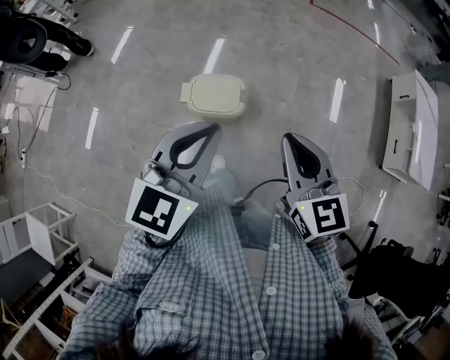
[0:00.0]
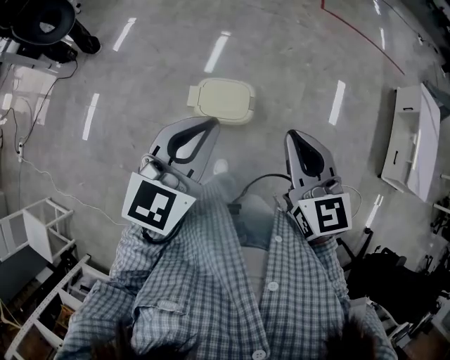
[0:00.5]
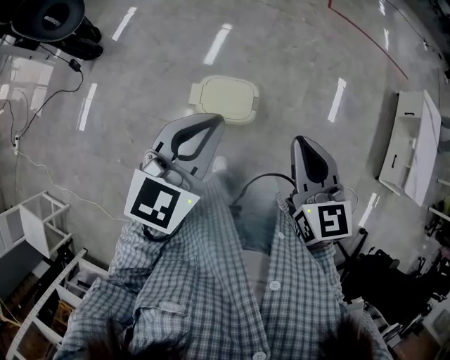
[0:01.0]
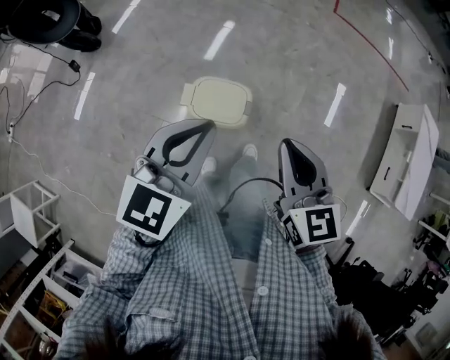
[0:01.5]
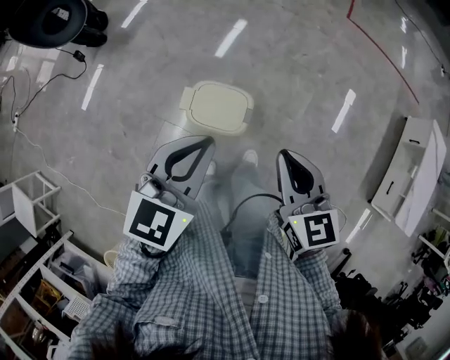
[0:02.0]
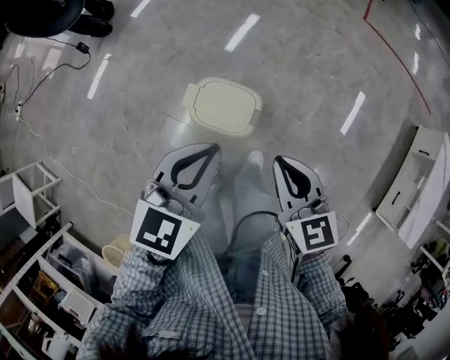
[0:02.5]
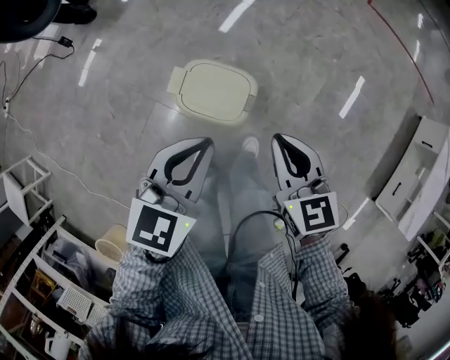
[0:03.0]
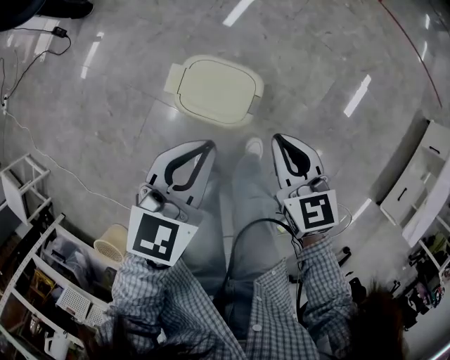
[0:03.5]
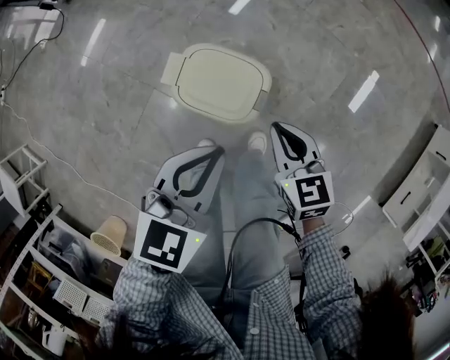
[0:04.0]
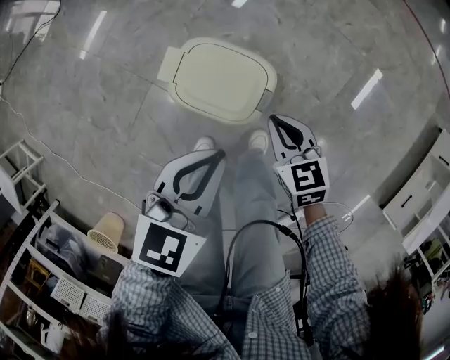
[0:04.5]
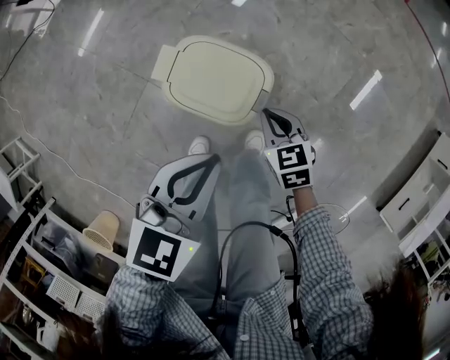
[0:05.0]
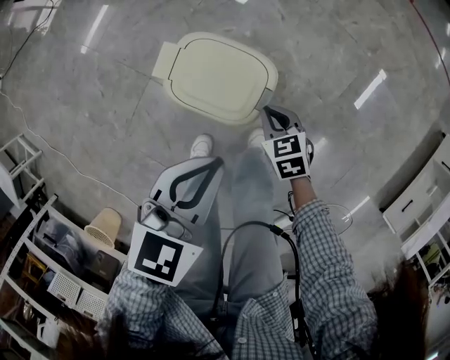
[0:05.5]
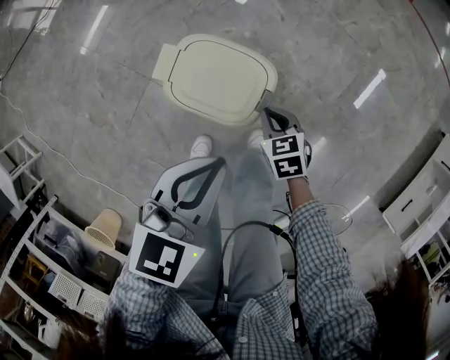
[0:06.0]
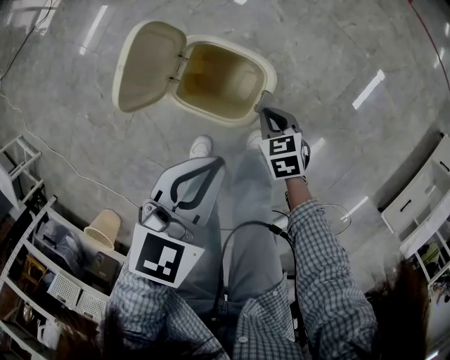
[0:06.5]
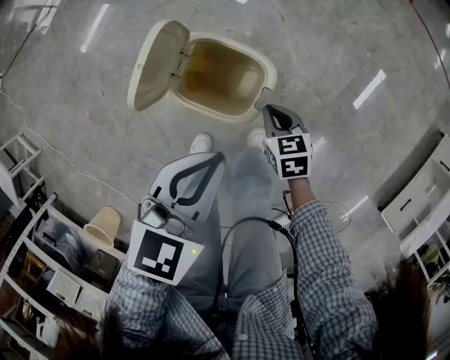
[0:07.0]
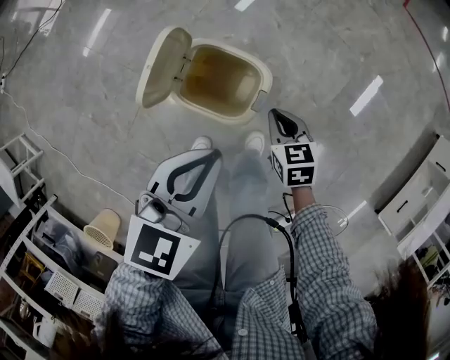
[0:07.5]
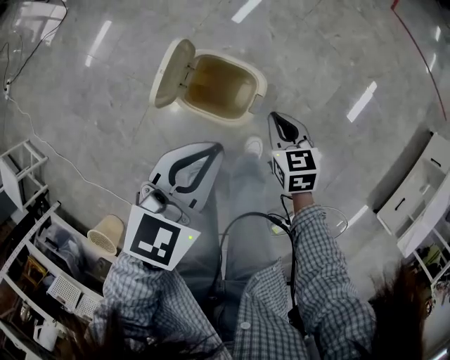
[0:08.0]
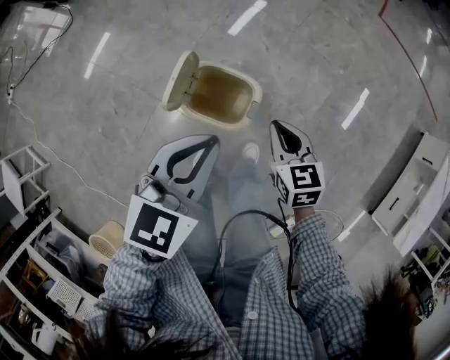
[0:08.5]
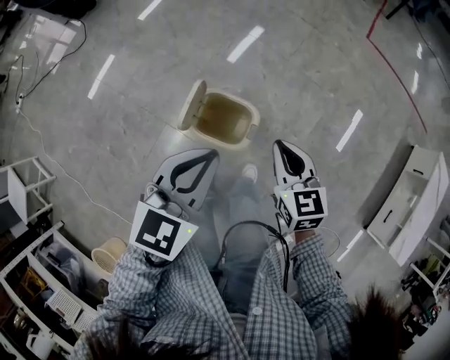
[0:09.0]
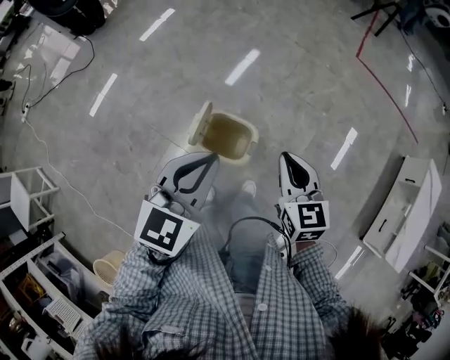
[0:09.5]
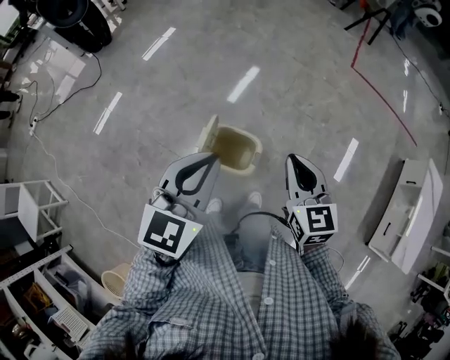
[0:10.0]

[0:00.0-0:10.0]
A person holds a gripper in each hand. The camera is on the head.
0:00.0 to 0:02.0: Both grippers move forward and downward, some 15 cm.
0:02.0 to 0:04.0: Both grippers travel together downward, some 25 cm.
0:04.0 to 0:06.0: The right gripper is displaced downward by some 20 cm.
0:06.0 to 0:08.0: The right gripper heads upward, covering some 15 cm; the left gripper shifts approximately 10 cm upward.
0:08.0 to 0:10.0: The left gripper goes roughly 25 cm upward; the right gripper goes some 35 cm upward, and rotates about 30 degrees.

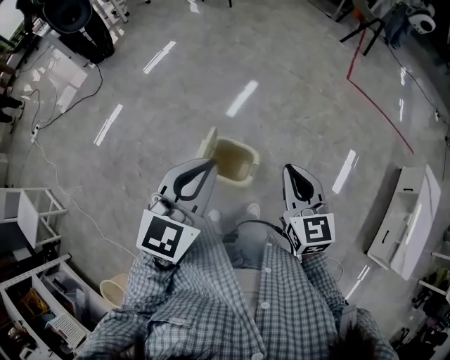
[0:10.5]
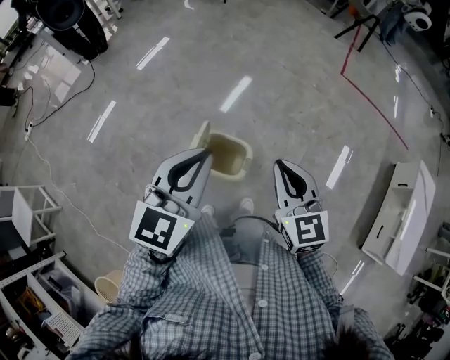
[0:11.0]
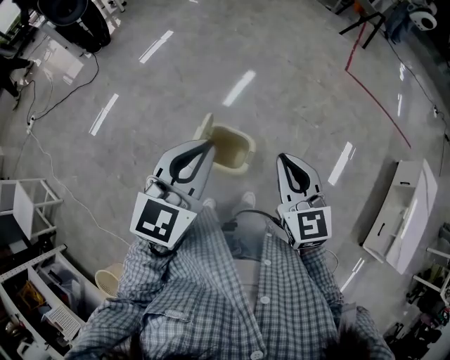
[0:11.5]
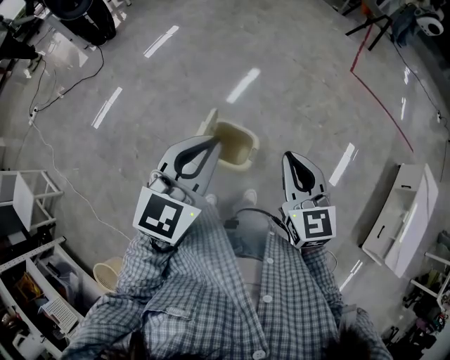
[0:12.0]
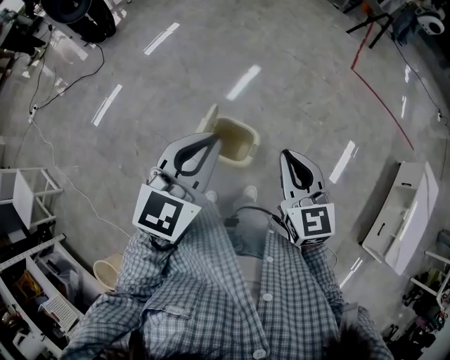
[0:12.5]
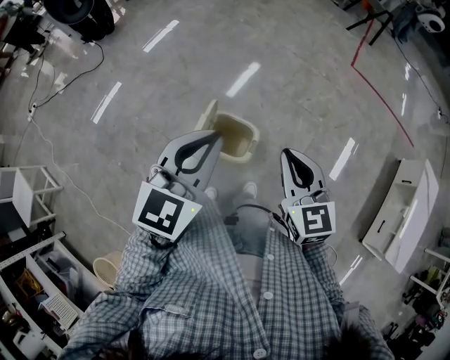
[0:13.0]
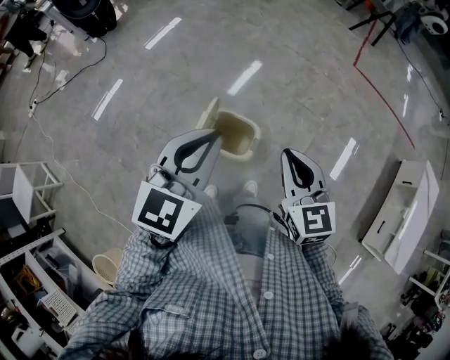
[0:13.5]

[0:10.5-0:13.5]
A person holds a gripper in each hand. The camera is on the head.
0:10.5 to 0:13.5: The grippers stay close to where they were, moving slightly.

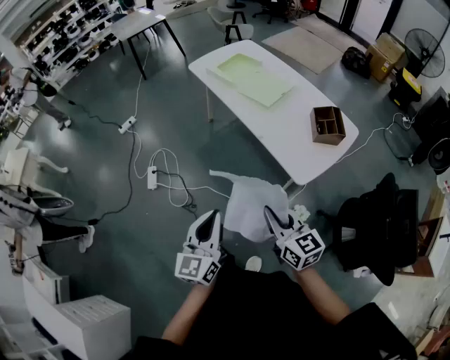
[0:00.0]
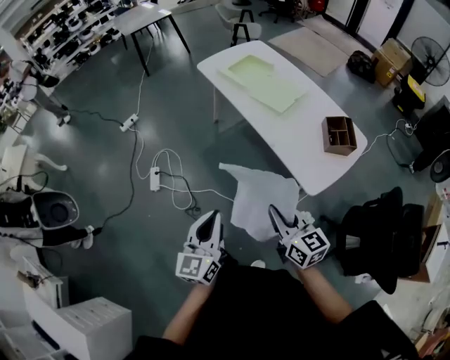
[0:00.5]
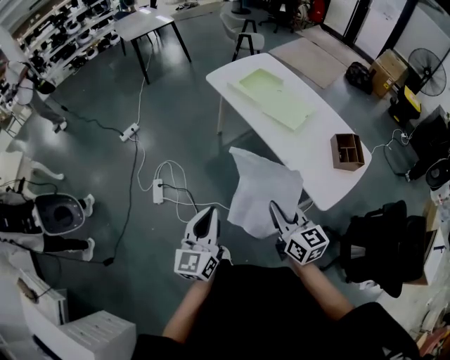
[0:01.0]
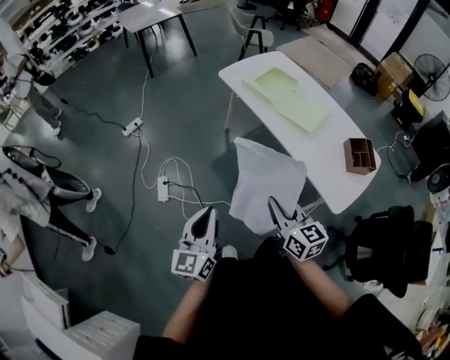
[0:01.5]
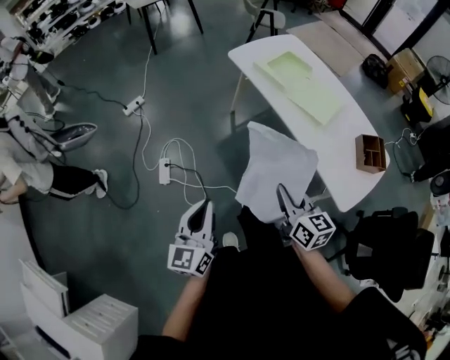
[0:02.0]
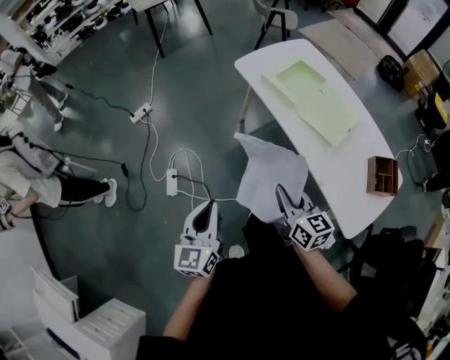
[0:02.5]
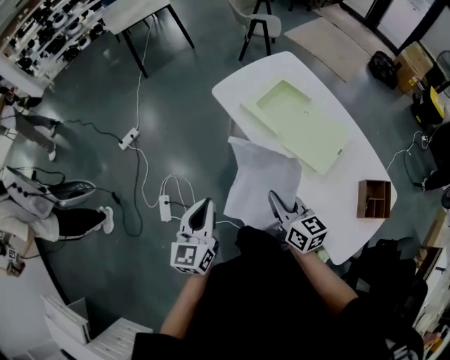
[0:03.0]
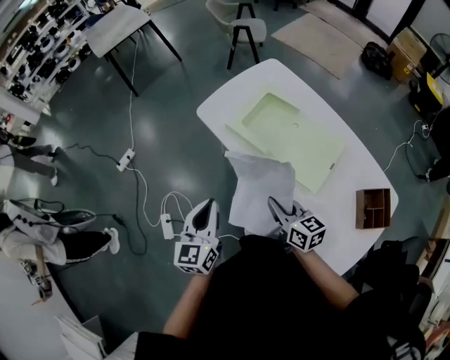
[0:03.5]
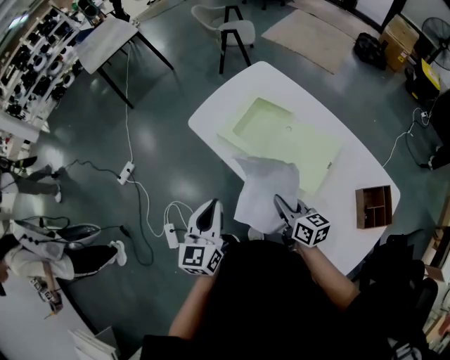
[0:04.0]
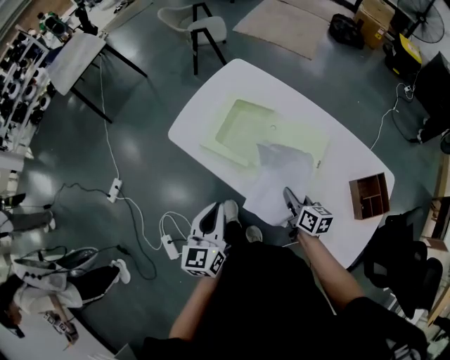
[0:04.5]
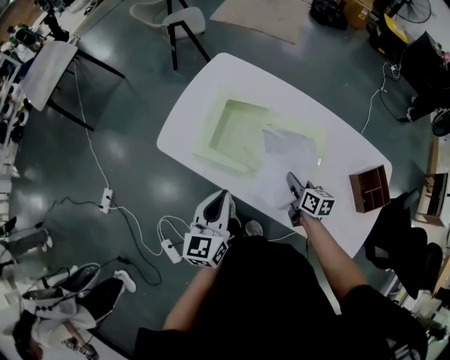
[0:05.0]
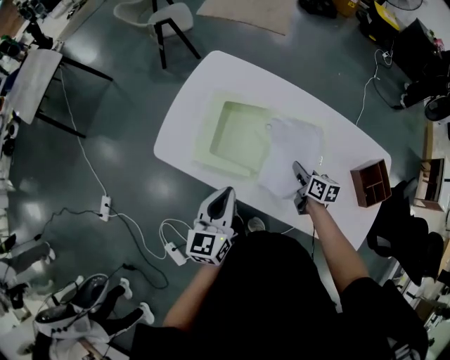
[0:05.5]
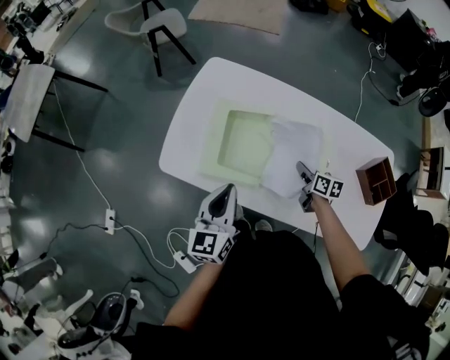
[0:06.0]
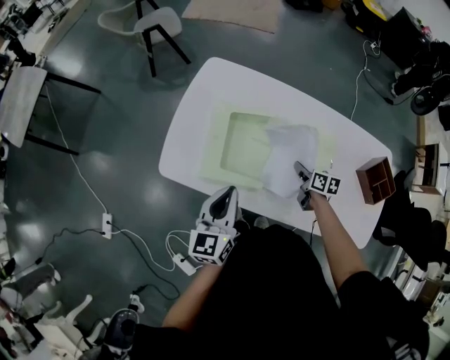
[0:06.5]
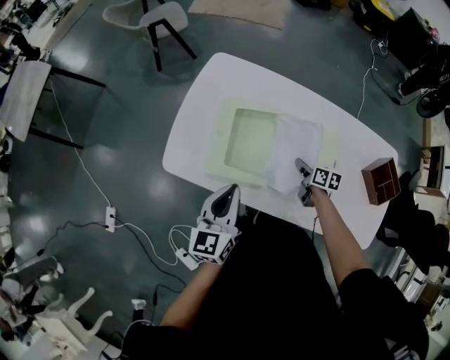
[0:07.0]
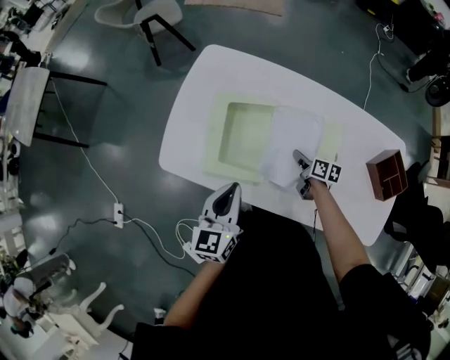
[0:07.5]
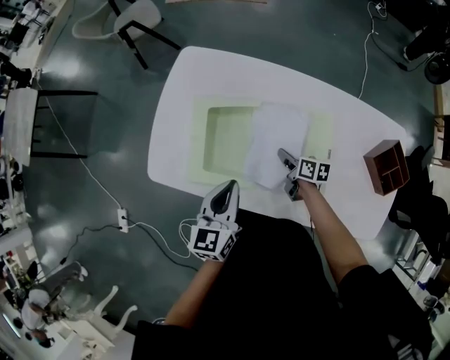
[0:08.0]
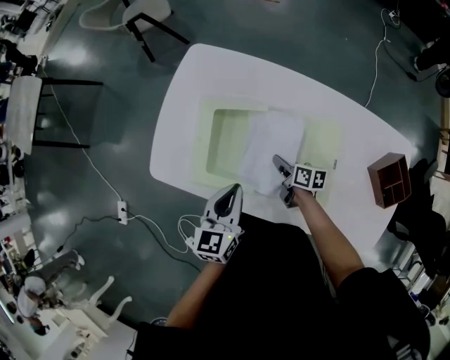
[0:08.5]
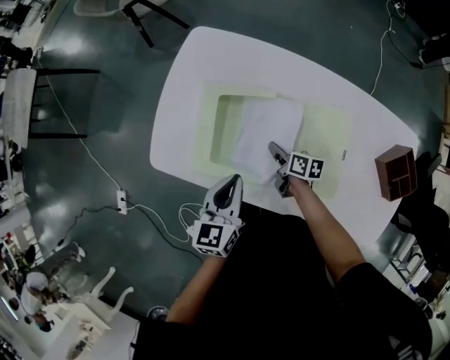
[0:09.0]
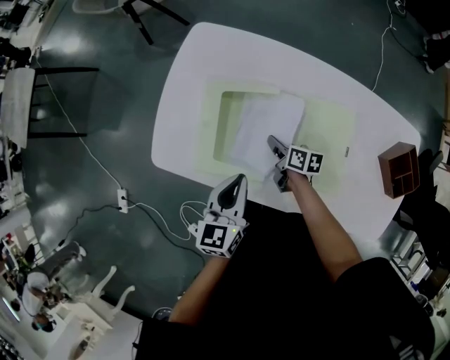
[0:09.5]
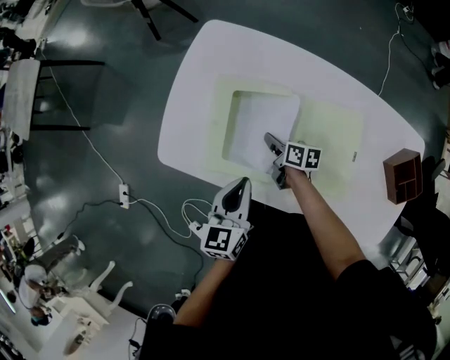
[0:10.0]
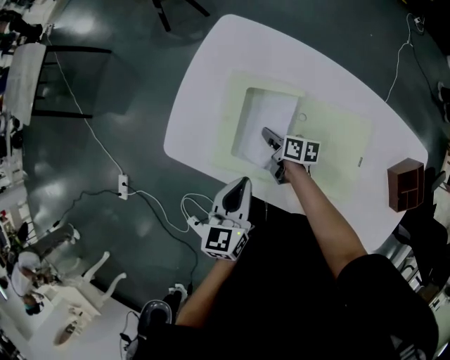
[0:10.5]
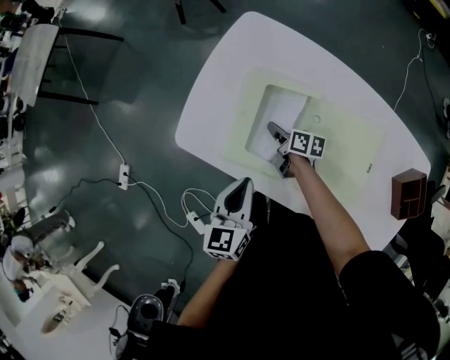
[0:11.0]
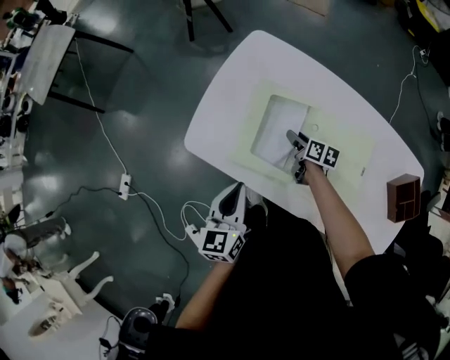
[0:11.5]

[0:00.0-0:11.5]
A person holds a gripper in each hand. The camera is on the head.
0:00.0 to 0:02.0: The right gripper is displaced forward and to the left by roughly 30 cm. Meanwhile the left gripper moves to the left and forward, about 35 cm.
0:02.0 to 0:04.0: The two grippers travel together, forward and to the right, about 40 cm.
0:04.0 to 0:06.0: The right gripper shifts by about 25 cm, and changes its angle by about 40 degrees, while the left gripper shifts by about 25 cm, and turns by some 30 degrees.
0:06.0 to 0:07.5: The right gripper moves downward, about 5 cm.
0:07.5 to 0:09.5: The left gripper shifts roughly 5 cm downward. The right gripper moves to the left, approximately 10 cm.
0:09.5 to 0:11.5: The left gripper shifts some 10 cm to the left. The right gripper shifts about 5 cm forward, and opens up.

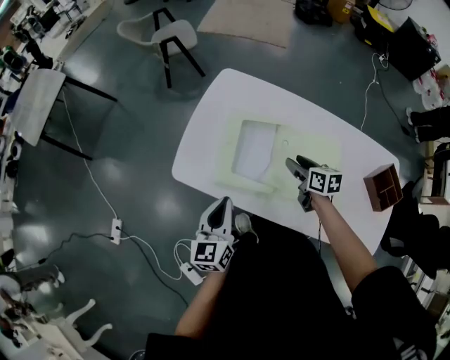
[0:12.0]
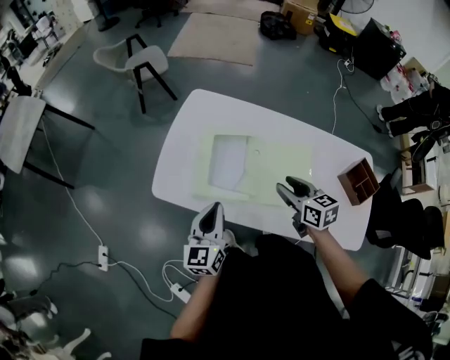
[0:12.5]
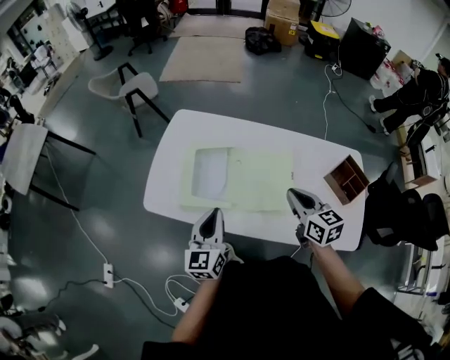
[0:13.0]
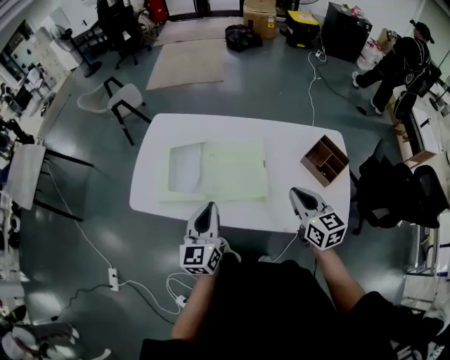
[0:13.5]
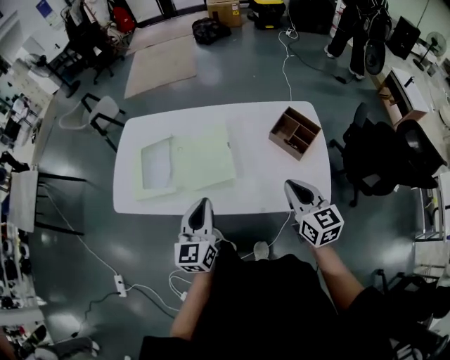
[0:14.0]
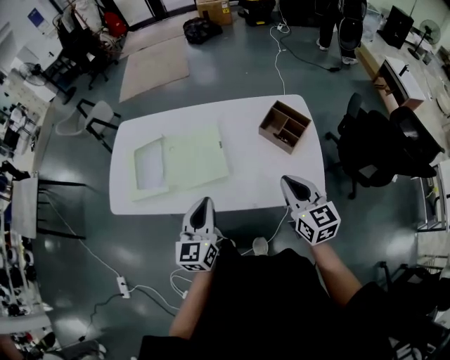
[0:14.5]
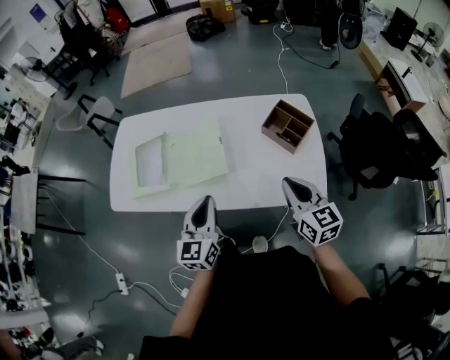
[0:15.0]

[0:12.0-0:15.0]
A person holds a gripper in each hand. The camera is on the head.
0:12.0 to 0:13.5: The left gripper goes about 25 cm to the right and upward, while the right gripper goes approximately 40 cm backward, to the right and upward, changes its angle by roughly 30 degrees, and closes up.
0:13.5 to 0:15.0: The right gripper shifts some 15 cm to the right and backward. Meanwhile the left gripper goes approximately 15 cm to the right.
